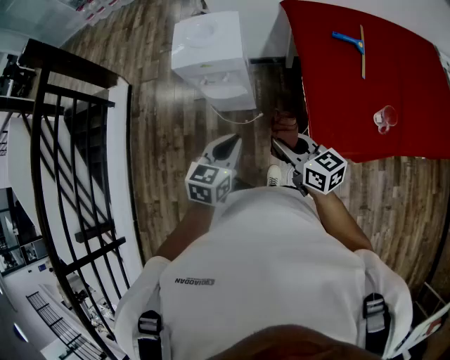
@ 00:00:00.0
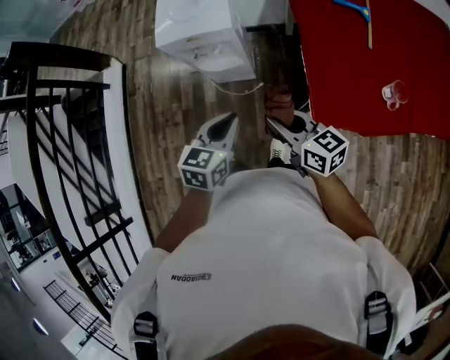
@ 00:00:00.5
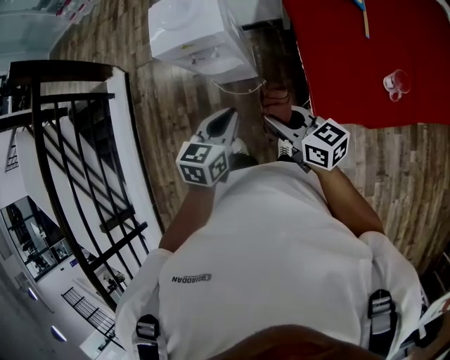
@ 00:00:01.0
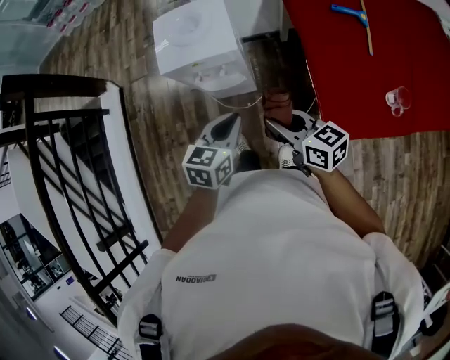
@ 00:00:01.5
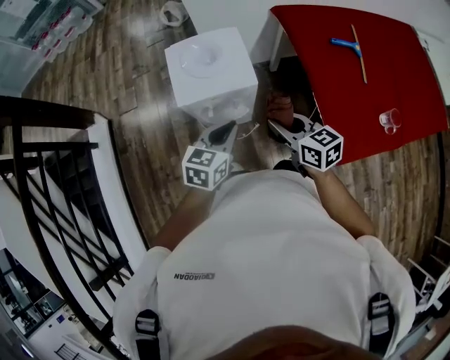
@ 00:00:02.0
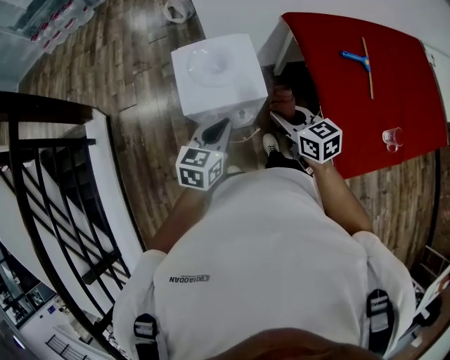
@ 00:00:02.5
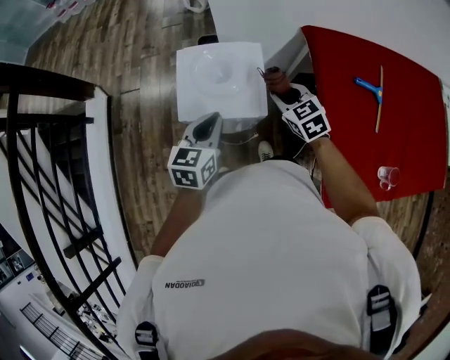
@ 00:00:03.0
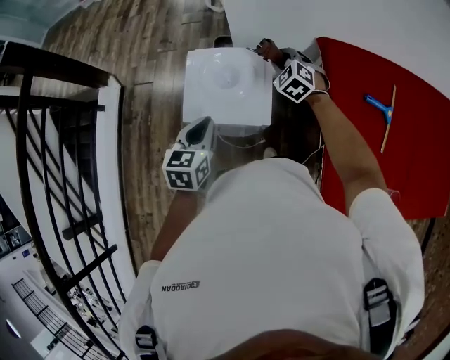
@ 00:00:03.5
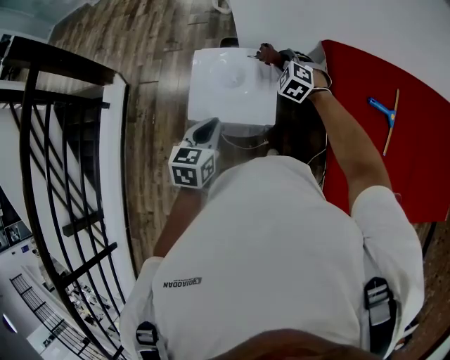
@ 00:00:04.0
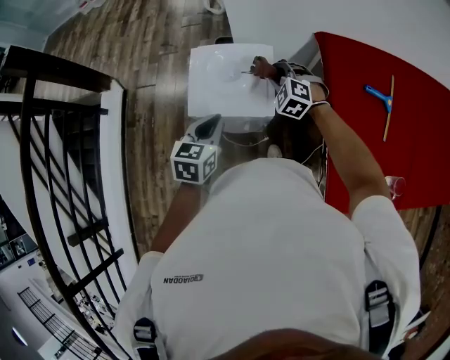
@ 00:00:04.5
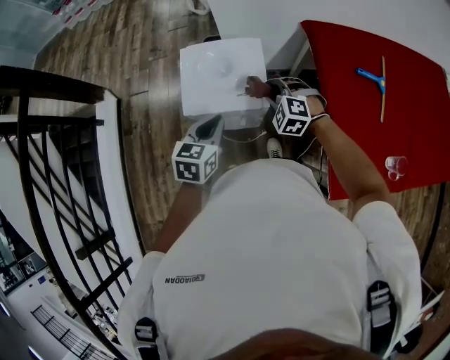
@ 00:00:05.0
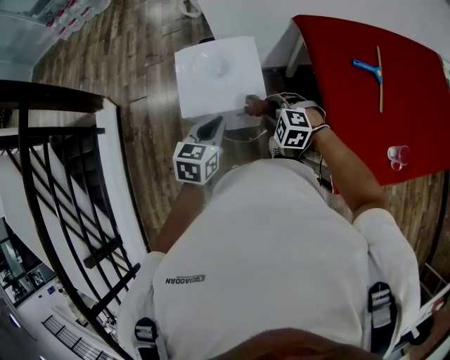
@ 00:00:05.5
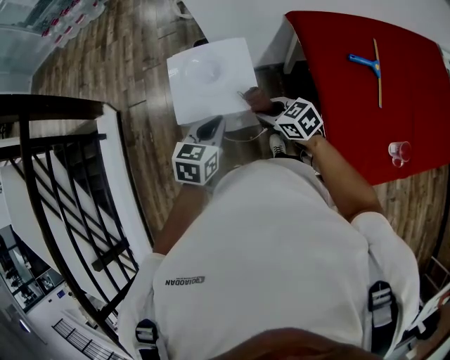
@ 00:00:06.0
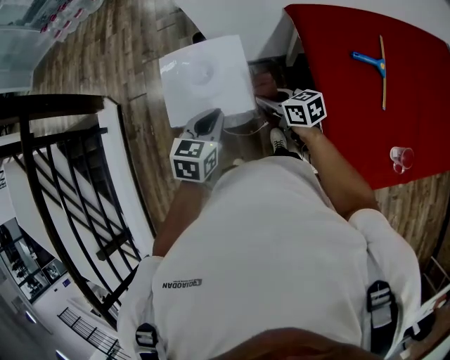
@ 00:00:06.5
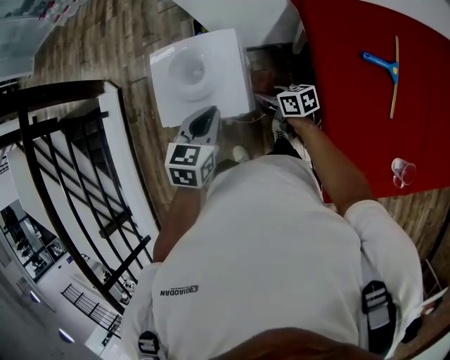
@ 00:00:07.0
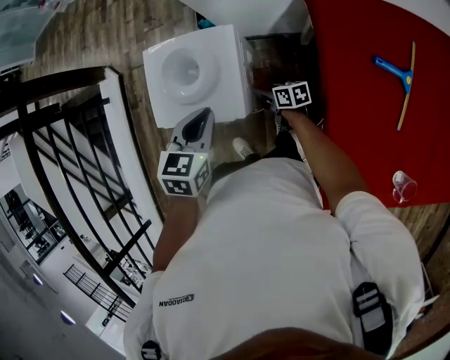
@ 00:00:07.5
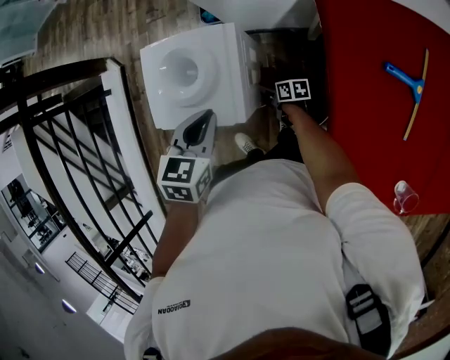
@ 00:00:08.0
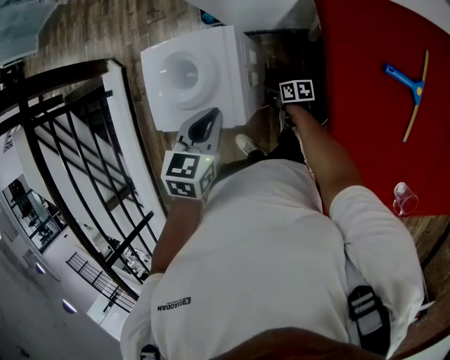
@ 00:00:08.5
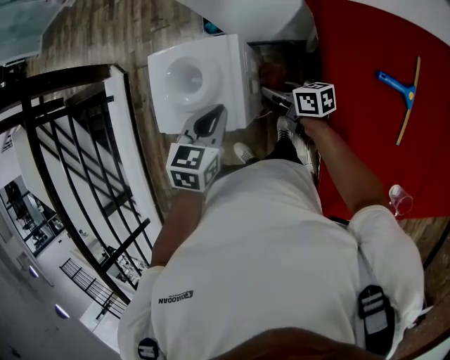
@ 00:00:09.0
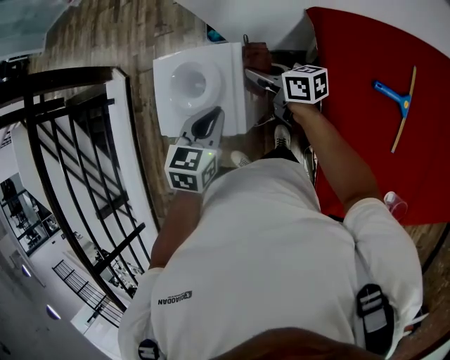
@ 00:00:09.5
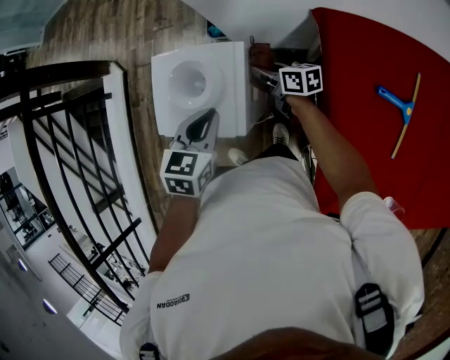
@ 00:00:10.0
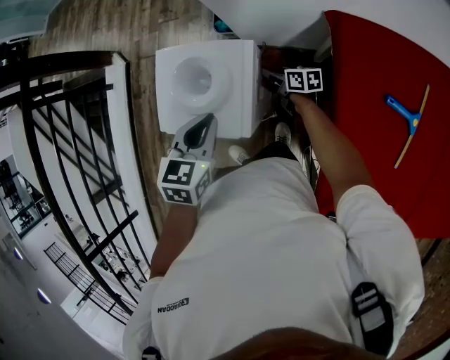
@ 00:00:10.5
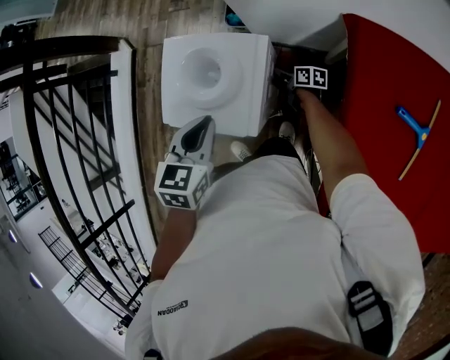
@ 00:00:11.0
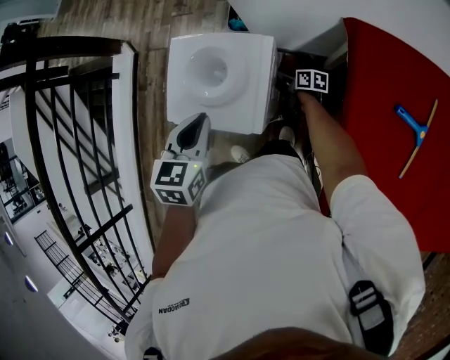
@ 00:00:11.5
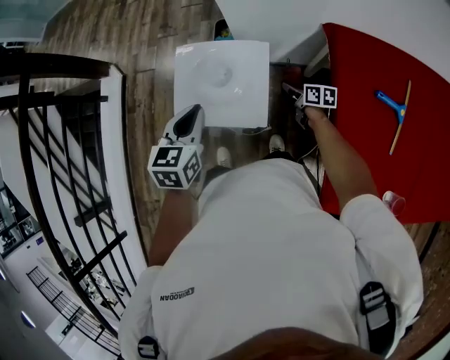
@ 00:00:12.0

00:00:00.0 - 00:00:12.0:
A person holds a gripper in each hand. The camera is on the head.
00:00:00.0 - 00:00:02.0: The left gripper moves forward, some 20 cm; the right gripper goes about 20 cm forward and to the left.
00:00:02.0 - 00:00:04.0: The right gripper is displaced forward by about 35 cm, and rolls counterclockwise, seen from behind, by approximately 70 degrees. The left gripper heads forward, covering roughly 10 cm, and changes its angle by some 30 degrees.
00:00:04.0 - 00:00:06.0: The right gripper heads backward, covering approximately 20 cm, and twists roughly 50 degrees clockwise, seen from behind; the left gripper ends up roughly 5 cm from where it was.
00:00:06.0 - 00:00:08.0: The right gripper goes roughly 30 cm downward, and rolls clockwise, seen from behind, by approximately 50 degrees. Meanwhile the left gripper goes some 10 cm to the right.
00:00:08.0 - 00:00:10.0: The right gripper travels upward and forward by some 25 cm, and changes its angle by about 20 degrees.
00:00:10.0 - 00:00:12.0: The left gripper goes approximately 10 cm to the left. Meanwhile the right gripper is displaced downward and backward by roughly 10 cm.

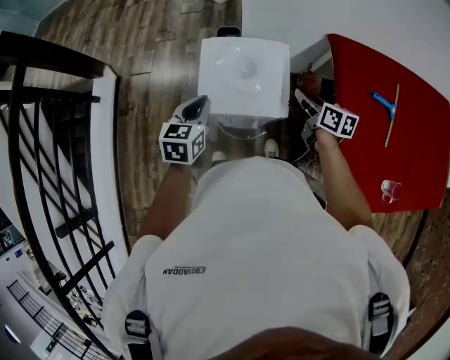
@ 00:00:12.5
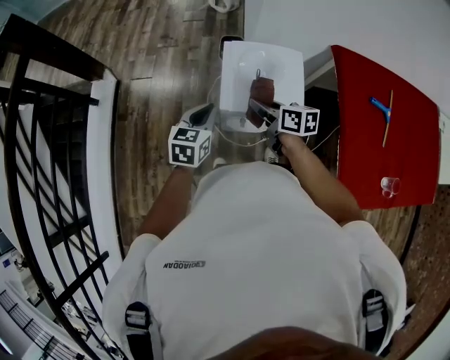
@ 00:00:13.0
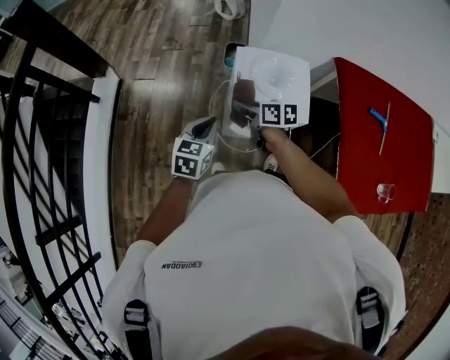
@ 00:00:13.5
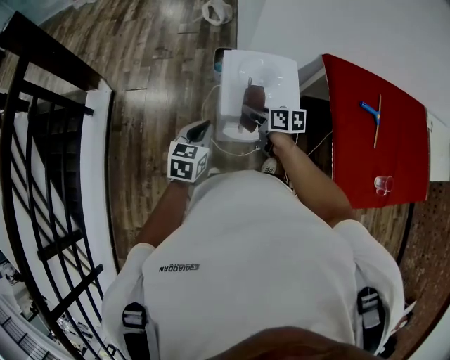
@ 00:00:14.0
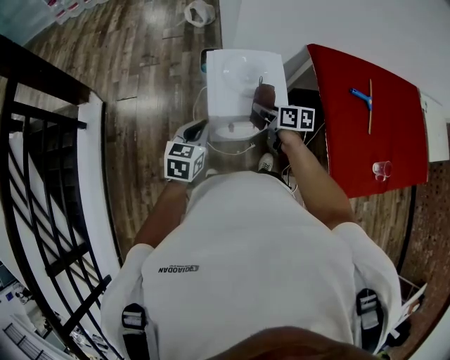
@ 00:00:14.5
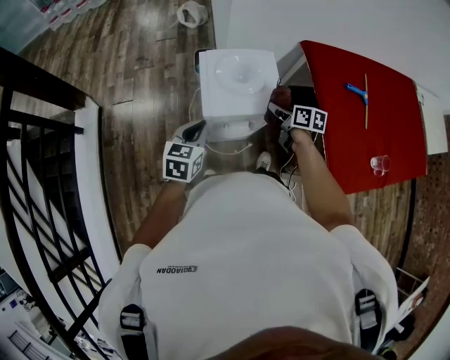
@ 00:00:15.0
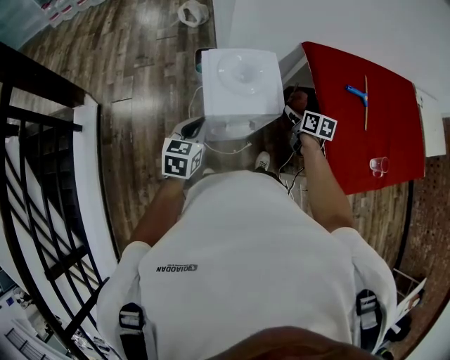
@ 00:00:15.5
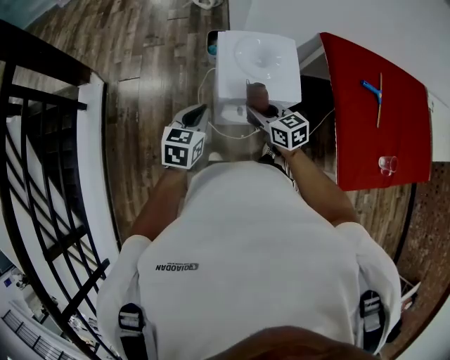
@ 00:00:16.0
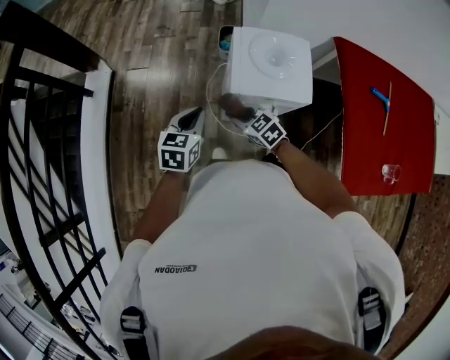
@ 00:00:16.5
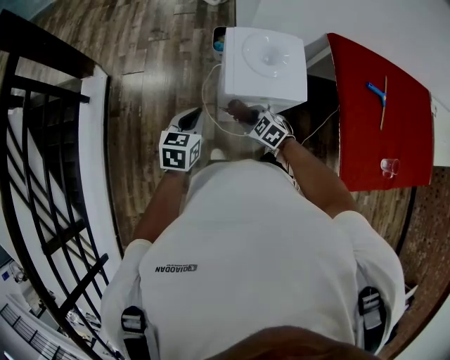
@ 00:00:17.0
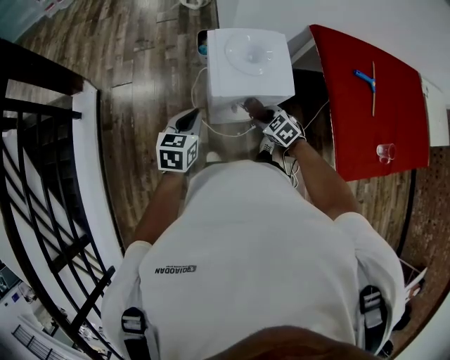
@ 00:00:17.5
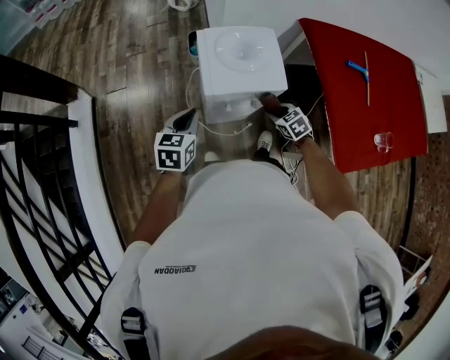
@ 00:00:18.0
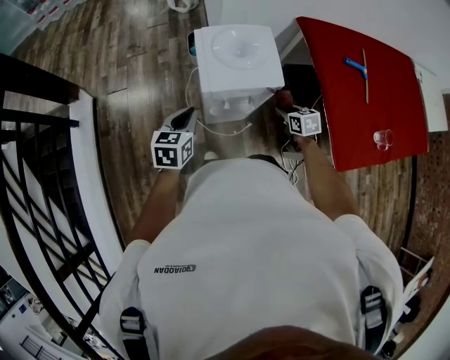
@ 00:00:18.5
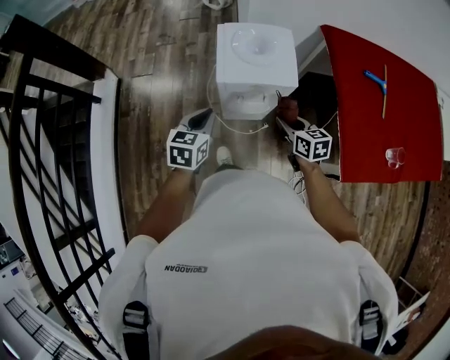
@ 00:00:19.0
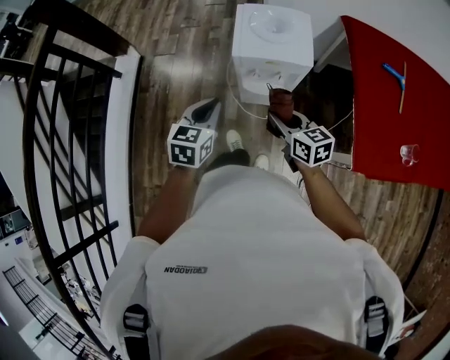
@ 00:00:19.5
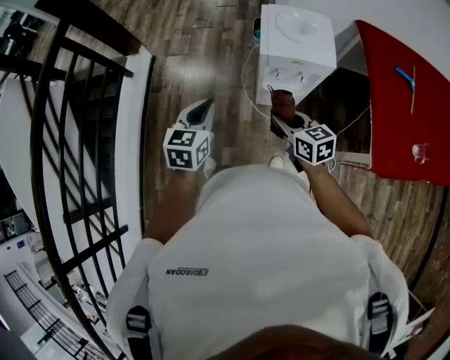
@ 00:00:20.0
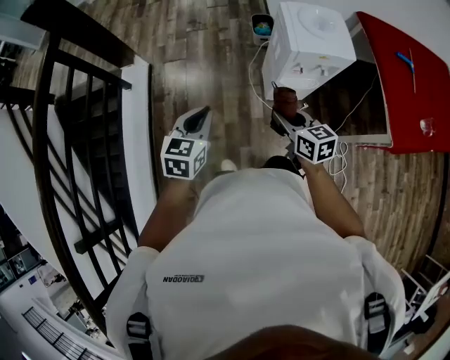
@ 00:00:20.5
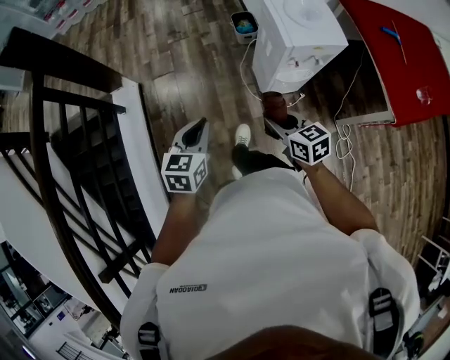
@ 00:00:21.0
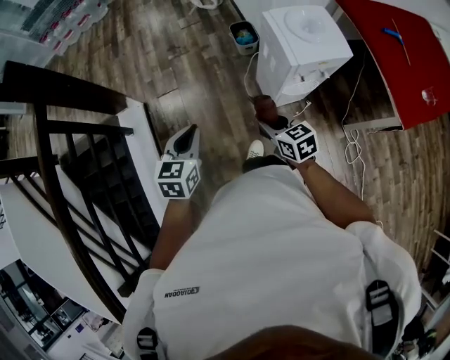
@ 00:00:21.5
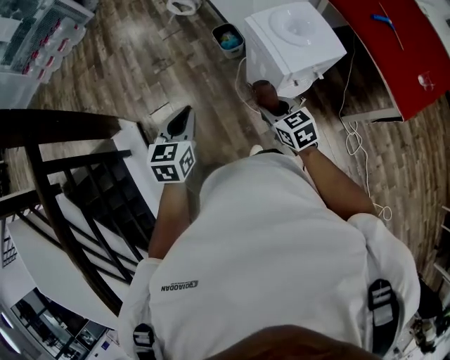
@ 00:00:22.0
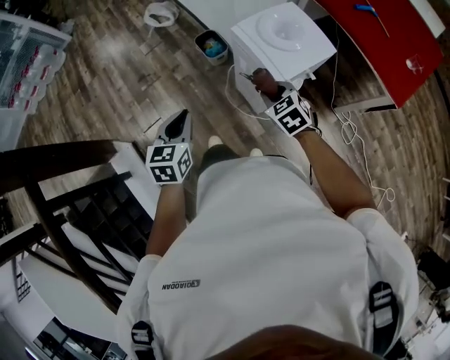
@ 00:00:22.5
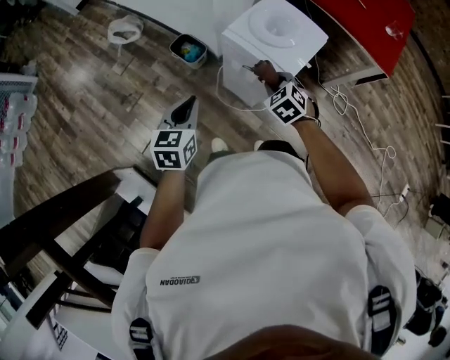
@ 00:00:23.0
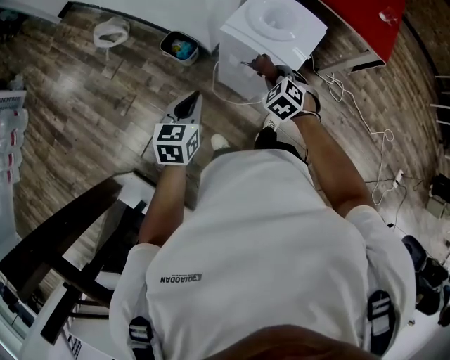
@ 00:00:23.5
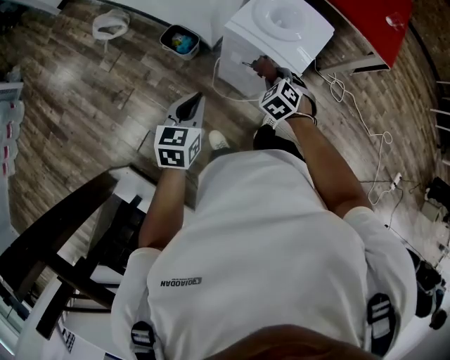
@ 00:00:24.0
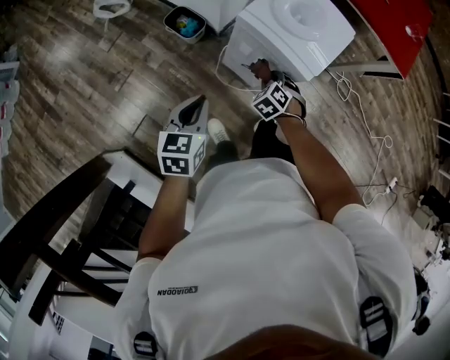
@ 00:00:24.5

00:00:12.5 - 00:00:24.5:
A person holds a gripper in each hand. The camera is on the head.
00:00:12.5 - 00:00:14.5: The left gripper travels backward and to the left by roughly 10 cm. The right gripper is displaced to the left by about 15 cm.
00:00:14.5 - 00:00:16.5: The left gripper moves some 10 cm, while the right gripper changes place by some 20 cm, and rolls counterclockwise, seen from behind, by about 50 degrees.
00:00:16.5 - 00:00:18.5: The right gripper is displaced to the right by about 25 cm, and changes its angle by about 50 degrees.
00:00:18.5 - 00:00:20.5: The left gripper goes about 30 cm to the left and backward; the right gripper heads to the left, covering approximately 40 cm, and changes its angle by approximately 30 degrees.
00:00:20.5 - 00:00:22.5: The left gripper shifts by roughly 30 cm, and swivels approximately 20 degrees, while the right gripper changes place by roughly 25 cm, and turns by about 40 degrees.
00:00:22.5 - 00:00:24.5: The right gripper shifts approximately 15 cm downward, and changes its angle by approximately 30 degrees, while the left gripper ends up approximately 15 cm from where it was, and swivels some 20 degrees.

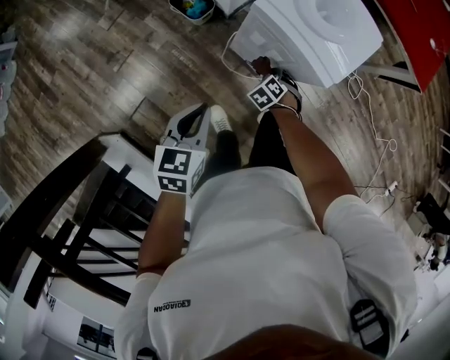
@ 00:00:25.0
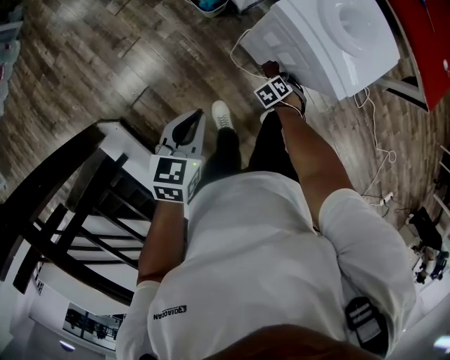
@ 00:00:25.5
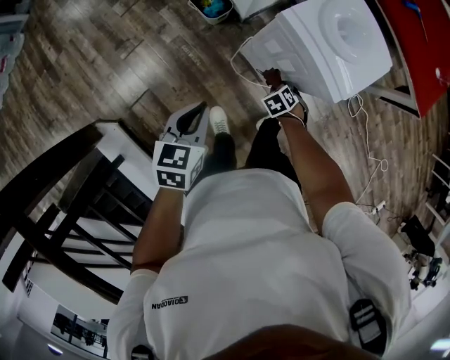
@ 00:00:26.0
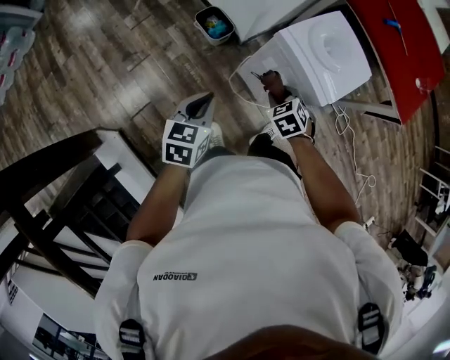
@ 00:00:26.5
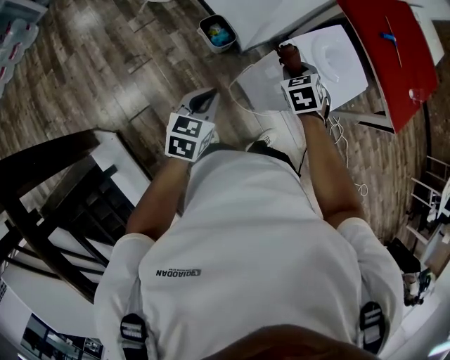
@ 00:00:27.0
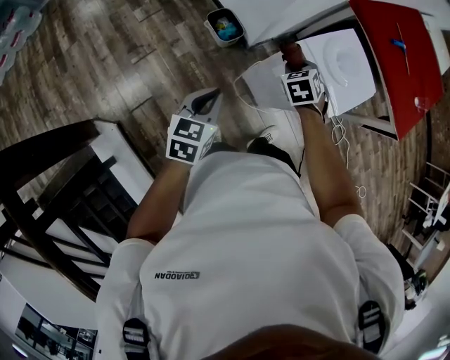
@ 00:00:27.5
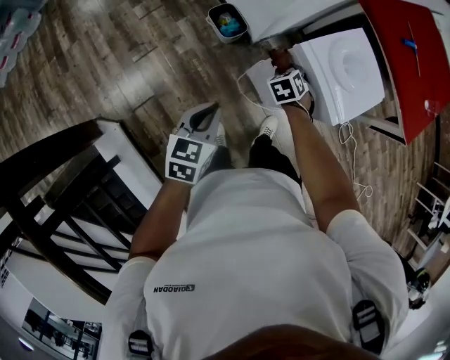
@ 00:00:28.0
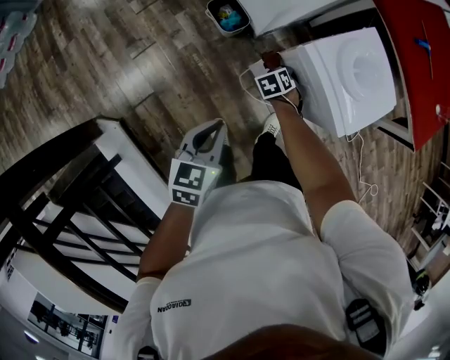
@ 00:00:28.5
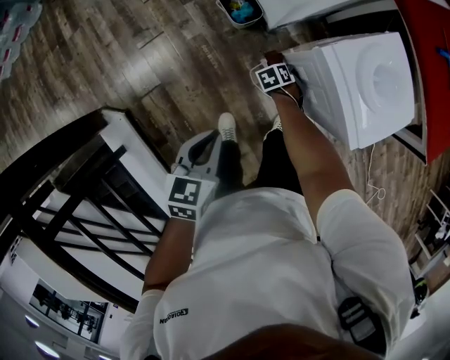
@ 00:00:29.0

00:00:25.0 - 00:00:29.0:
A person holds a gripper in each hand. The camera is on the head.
00:00:25.0 - 00:00:27.0: The right gripper travels upward by roughly 30 cm, and swivels some 20 degrees. Meanwhile the left gripper shifts by approximately 10 cm.
00:00:27.0 - 00:00:29.0: The right gripper shifts roughly 35 cm downward, and rotates approximately 30 degrees; the left gripper moves downward, approximately 5 cm.
